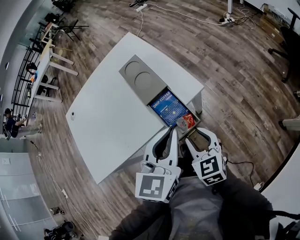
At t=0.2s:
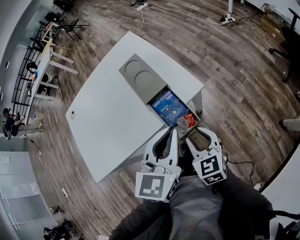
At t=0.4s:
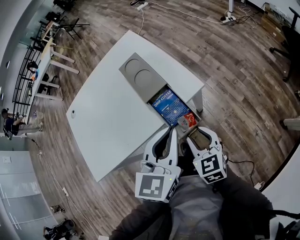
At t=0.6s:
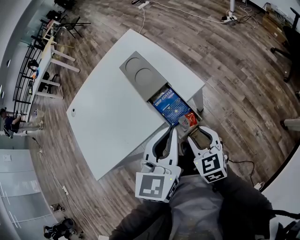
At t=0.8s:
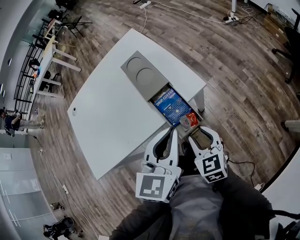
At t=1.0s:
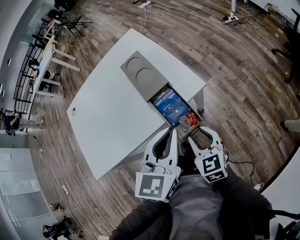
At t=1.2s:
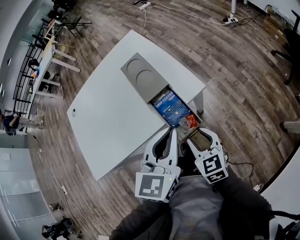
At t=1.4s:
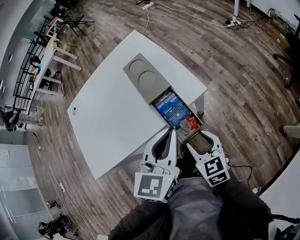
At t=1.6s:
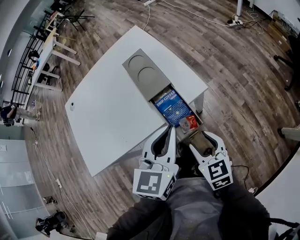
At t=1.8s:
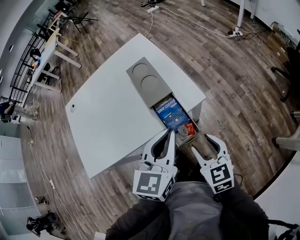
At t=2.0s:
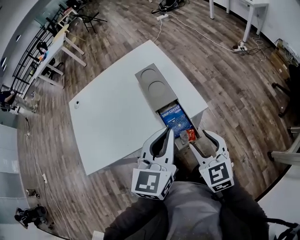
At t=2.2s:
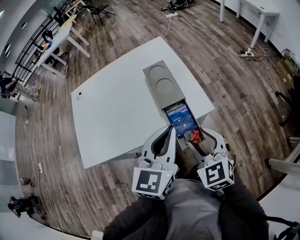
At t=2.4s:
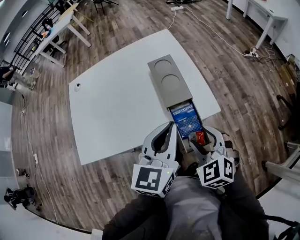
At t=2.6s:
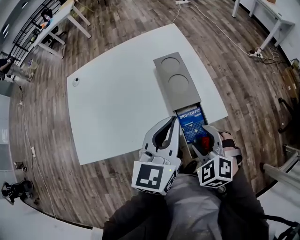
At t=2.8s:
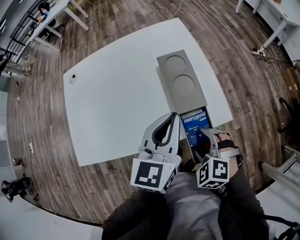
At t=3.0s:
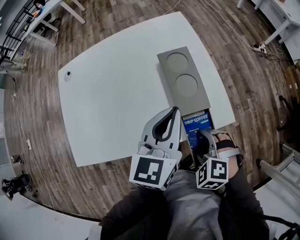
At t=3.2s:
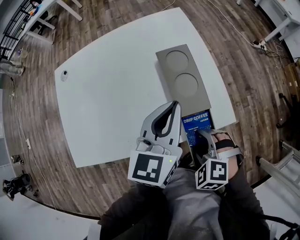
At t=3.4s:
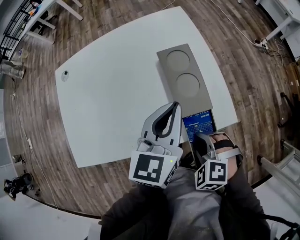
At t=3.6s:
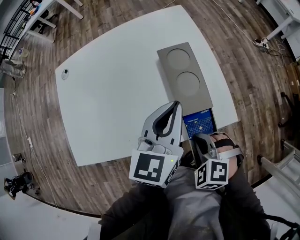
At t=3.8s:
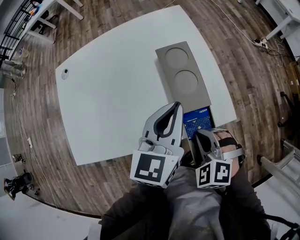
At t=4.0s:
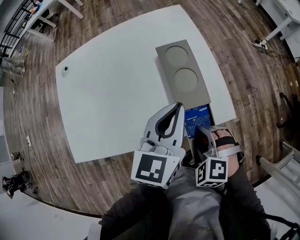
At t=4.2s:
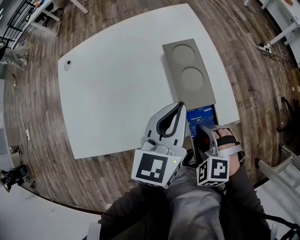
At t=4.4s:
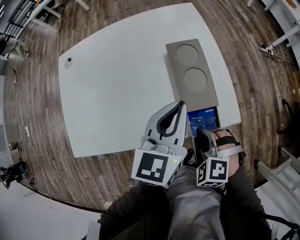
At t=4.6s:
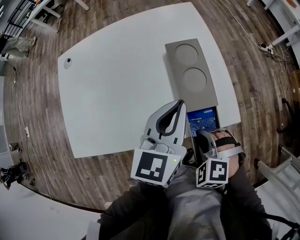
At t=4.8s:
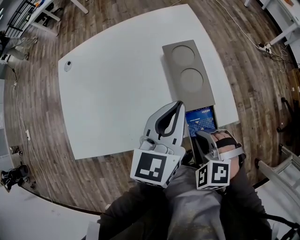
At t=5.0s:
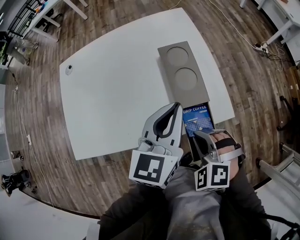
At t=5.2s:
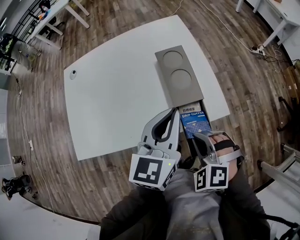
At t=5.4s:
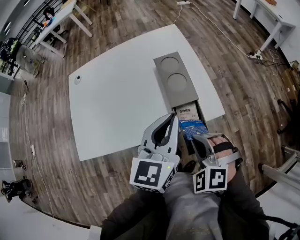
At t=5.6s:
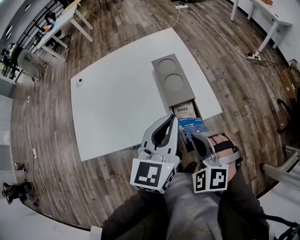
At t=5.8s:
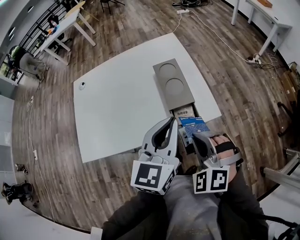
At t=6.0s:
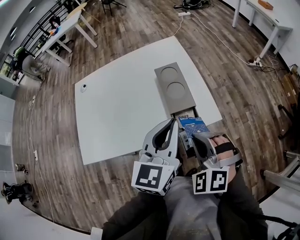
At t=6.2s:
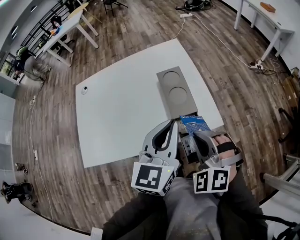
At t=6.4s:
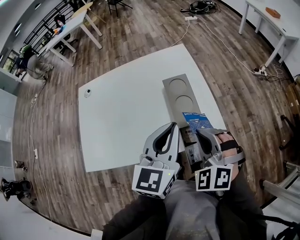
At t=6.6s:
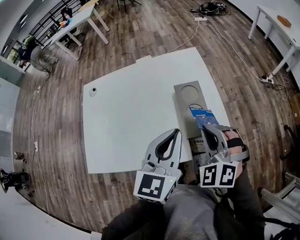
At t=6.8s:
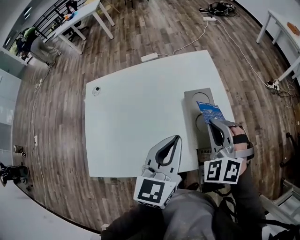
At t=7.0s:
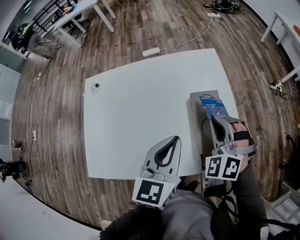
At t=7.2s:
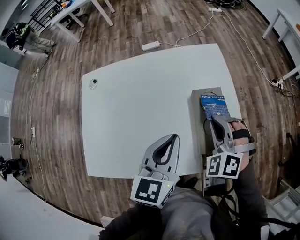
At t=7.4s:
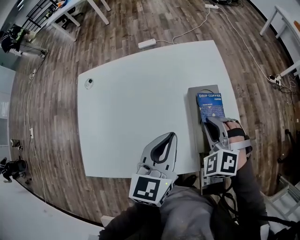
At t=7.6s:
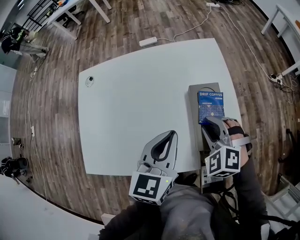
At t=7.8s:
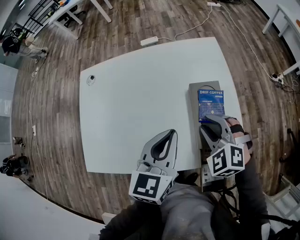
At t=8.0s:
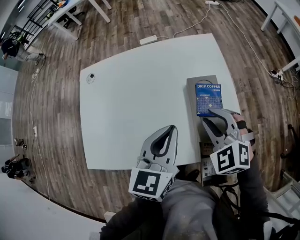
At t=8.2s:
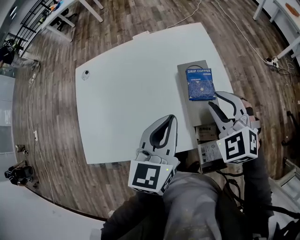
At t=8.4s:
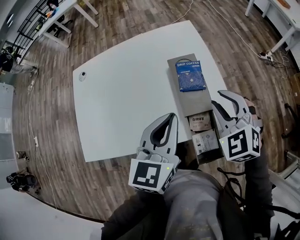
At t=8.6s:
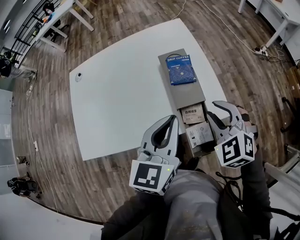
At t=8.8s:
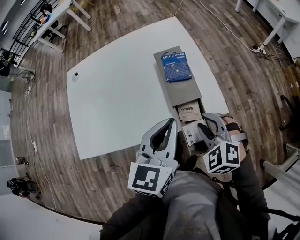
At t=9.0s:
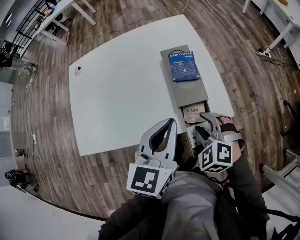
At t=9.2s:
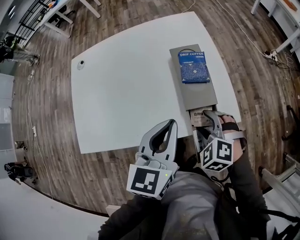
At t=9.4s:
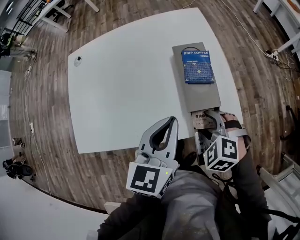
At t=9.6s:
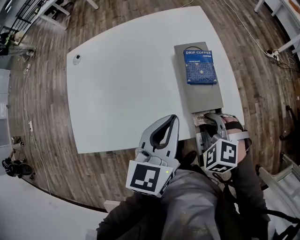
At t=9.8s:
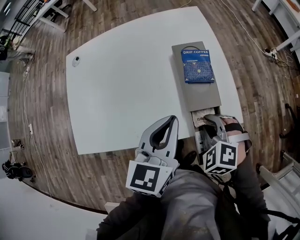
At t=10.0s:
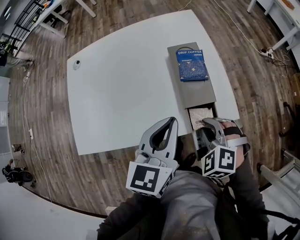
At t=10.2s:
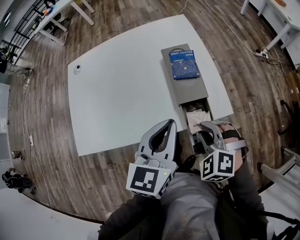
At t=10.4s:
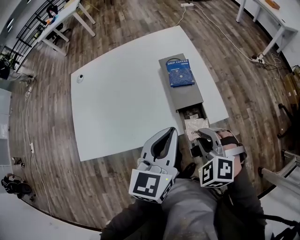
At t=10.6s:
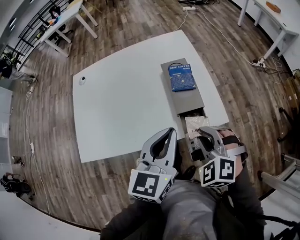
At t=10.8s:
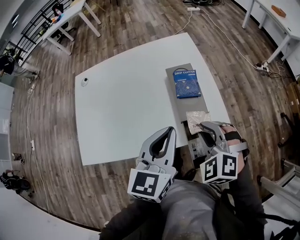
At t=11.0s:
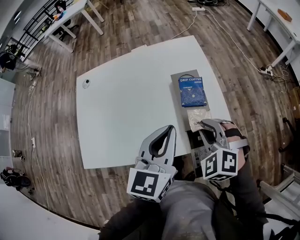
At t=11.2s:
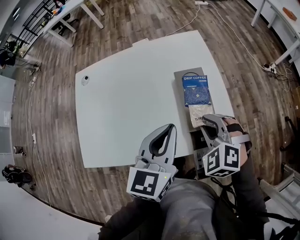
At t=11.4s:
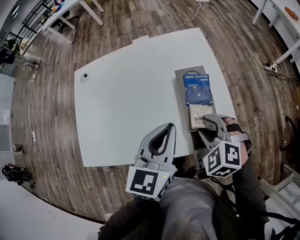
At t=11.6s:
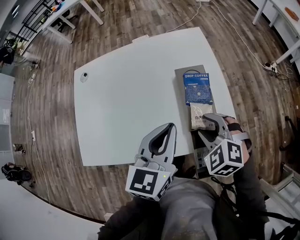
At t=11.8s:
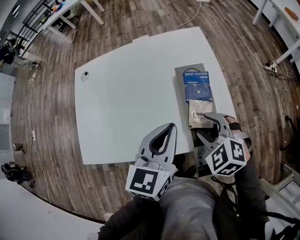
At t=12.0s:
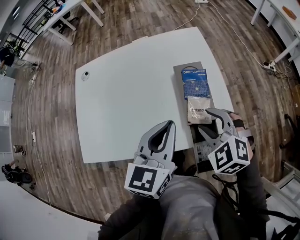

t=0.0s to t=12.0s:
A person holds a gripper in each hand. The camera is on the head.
t=0.0s to t=1.6s: There are only small adjustments of the grippers.
t=1.6s to t=3.0s: The right gripper shifts about 10 cm forward and to the left, goes upward and returns, roughly 10 cm each way, and twists approximately 60 degrees counterclockwise, seen from behind; the left gripper shifts about 15 cm forward and to the left.
t=3.0s to t=4.4s: The right gripper closes.
t=4.4s to t=6.0s: The right gripper travels upward by roughly 15 cm, rotates some 30 degrees, and closes. The left gripper heads backward and upward, covering about 10 cm.
t=6.0s to t=7.6s: The right gripper travels forward by about 20 cm, while the left gripper moves forward, to the left and downward, roughly 20 cm.
t=7.6s to t=9.0s: The left gripper shifts about 15 cm backward and to the right, while the right gripper moves backward, about 15 cm.
t=9.0s to t=10.4s: The right gripper ends up approximately 5 cm from where it was, and closes up.
t=10.4s to t=12.0s: The two grippers go about 10 cm forward. The right gripper opens its fingers.

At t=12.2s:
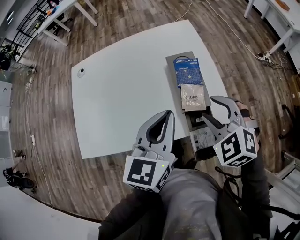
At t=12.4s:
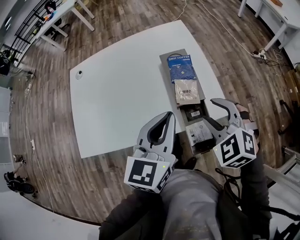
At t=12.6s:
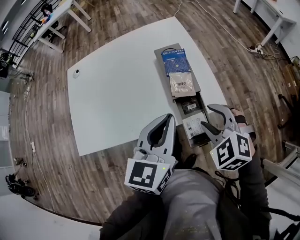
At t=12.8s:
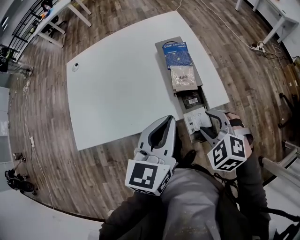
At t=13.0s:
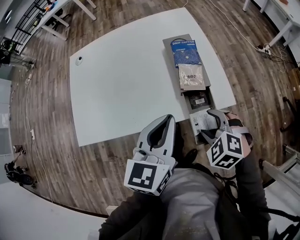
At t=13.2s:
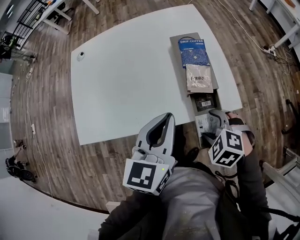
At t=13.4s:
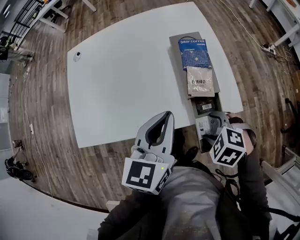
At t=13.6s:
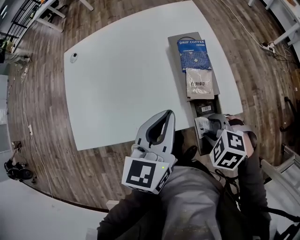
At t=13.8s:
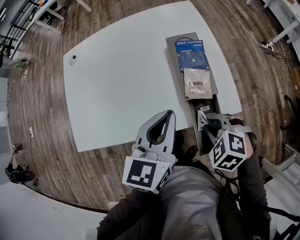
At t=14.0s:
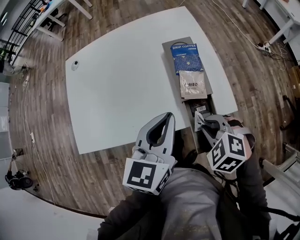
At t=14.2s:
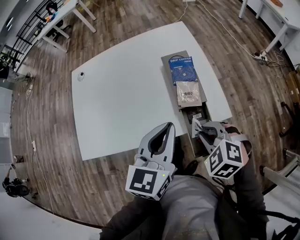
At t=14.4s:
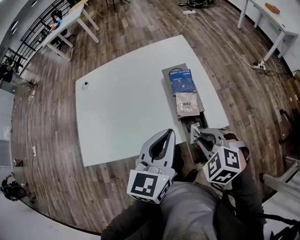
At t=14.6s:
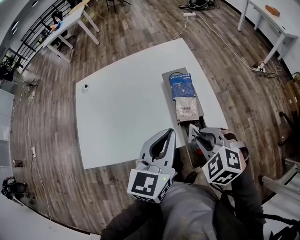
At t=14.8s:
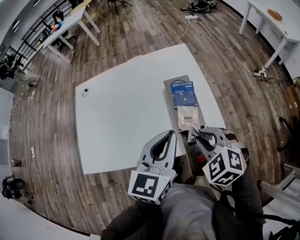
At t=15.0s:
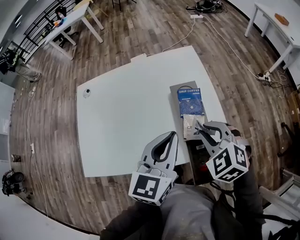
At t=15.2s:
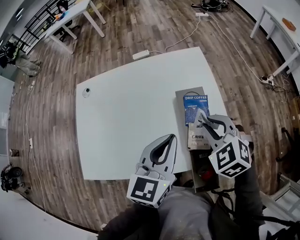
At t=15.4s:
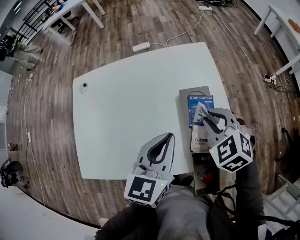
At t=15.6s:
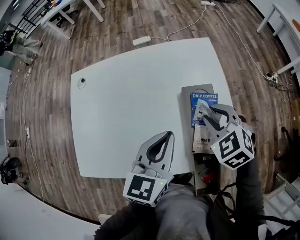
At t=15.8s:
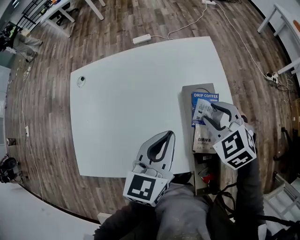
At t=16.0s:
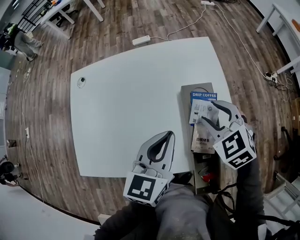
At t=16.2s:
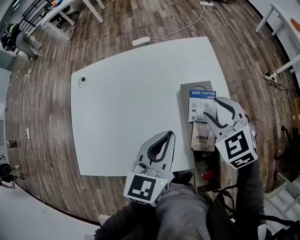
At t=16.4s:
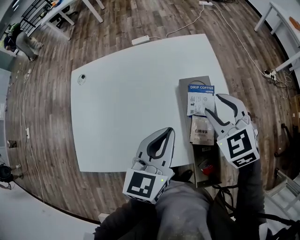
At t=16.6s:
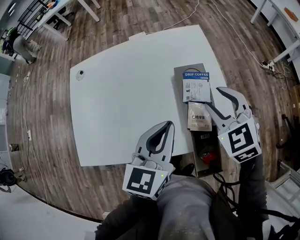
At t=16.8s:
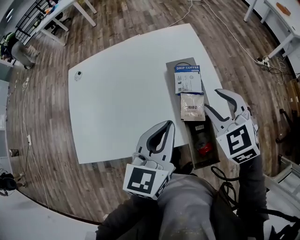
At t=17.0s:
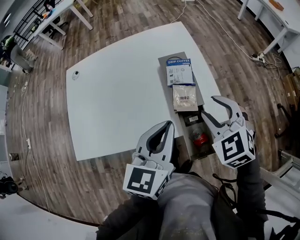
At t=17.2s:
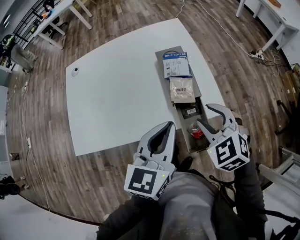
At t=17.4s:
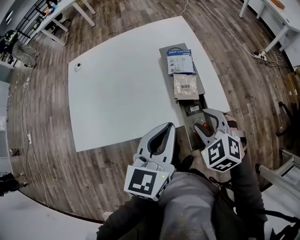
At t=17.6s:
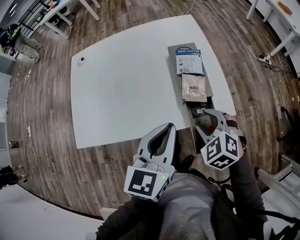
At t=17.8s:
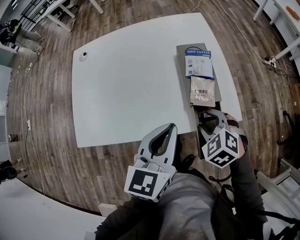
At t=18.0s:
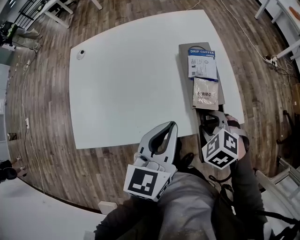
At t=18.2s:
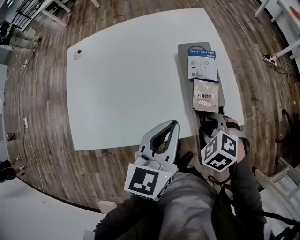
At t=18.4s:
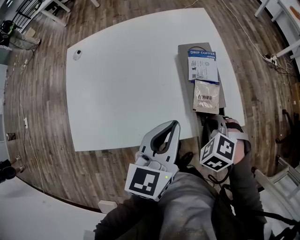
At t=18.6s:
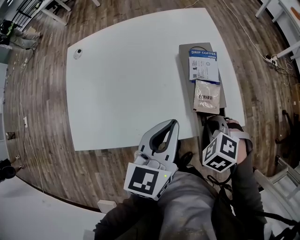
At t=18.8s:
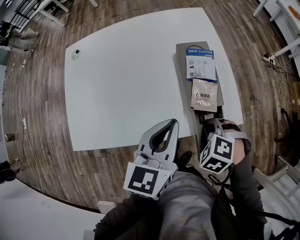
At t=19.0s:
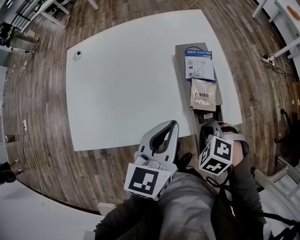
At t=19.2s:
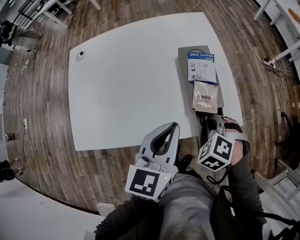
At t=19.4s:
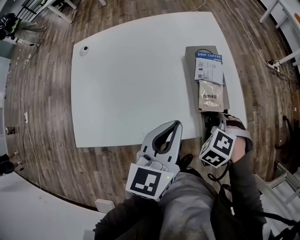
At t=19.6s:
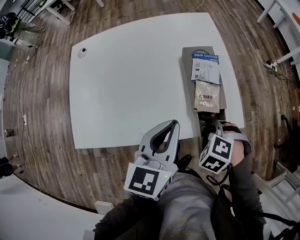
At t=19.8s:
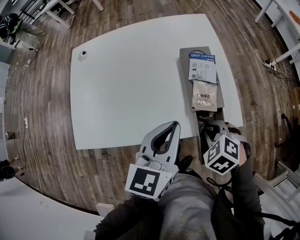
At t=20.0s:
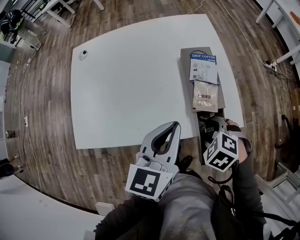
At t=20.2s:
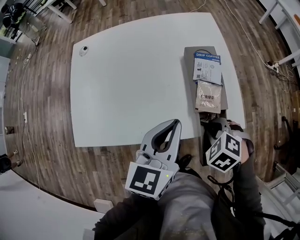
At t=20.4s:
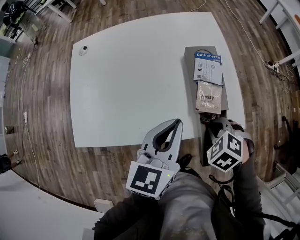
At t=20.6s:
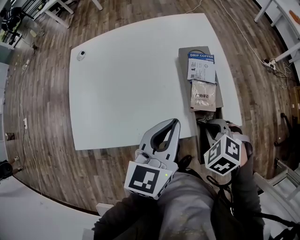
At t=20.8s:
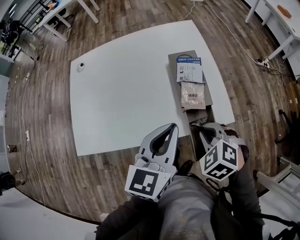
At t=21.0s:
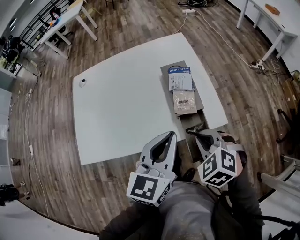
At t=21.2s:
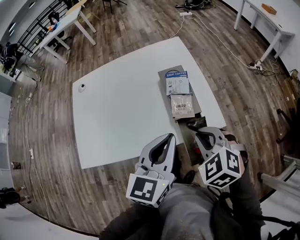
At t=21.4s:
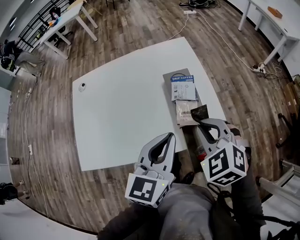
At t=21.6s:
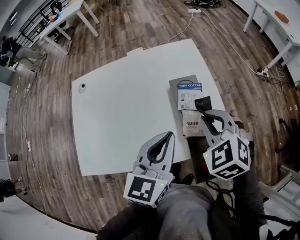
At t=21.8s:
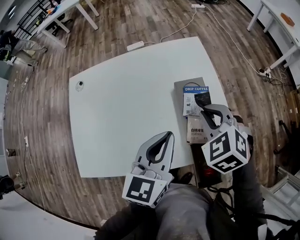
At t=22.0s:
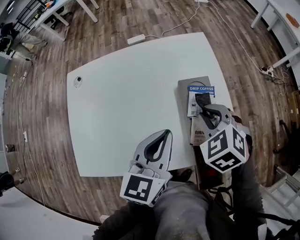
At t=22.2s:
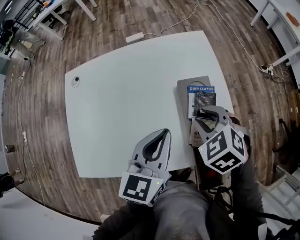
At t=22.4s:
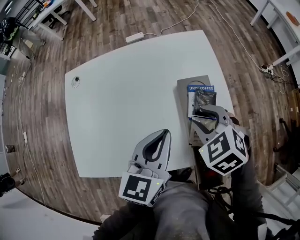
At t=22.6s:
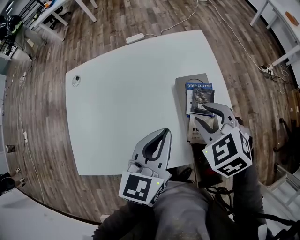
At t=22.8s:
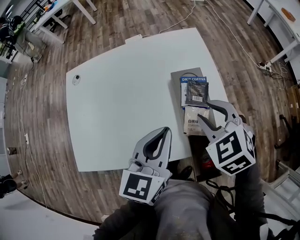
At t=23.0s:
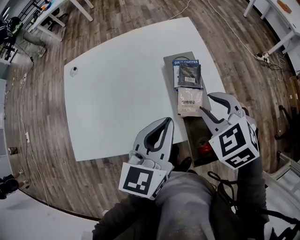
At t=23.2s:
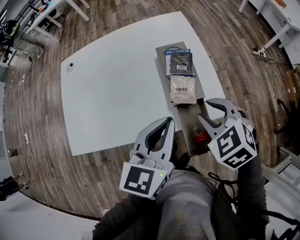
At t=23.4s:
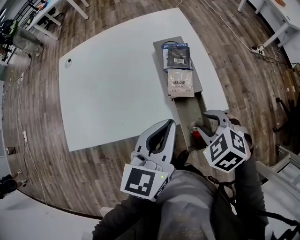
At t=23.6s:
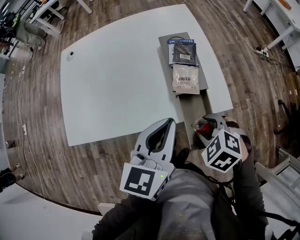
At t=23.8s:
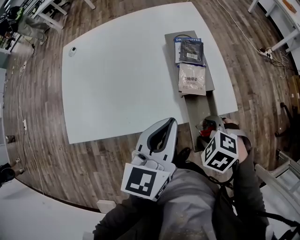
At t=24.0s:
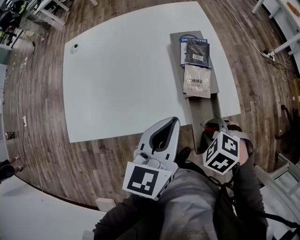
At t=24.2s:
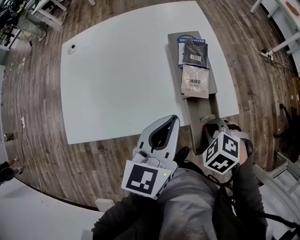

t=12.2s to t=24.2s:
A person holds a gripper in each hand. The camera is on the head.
t=12.2s to t=13.8s: The right gripper goes about 15 cm downward and backward, changes its angle by roughly 30 degrees, and closes up. The left gripper shifts approximately 5 cm downward, and moves about 10 cm backward and comes back.
t=13.8s to t=15.2s: The left gripper goes roughly 10 cm forward. Meanwhile the right gripper heads forward and upward, covering some 20 cm, and changes its angle by roughly 20 degrees.
t=15.2s to t=16.6s: The right gripper opens up.
t=16.6s to t=18.2s: The right gripper moves downward and backward, some 20 cm, and angles its fingers downward, by about 30 degrees; the left gripper heads backward, covering approximately 5 cm.
t=18.2s to t=19.8s: The right gripper closes up.
t=19.8s to t=21.2s: The right gripper travels upward by roughly 10 cm, changes its angle by approximately 20 degrees, and opens and closes again. The left gripper shifts by approximately 5 cm.
t=21.2s to t=22.6s: The right gripper moves forward, some 15 cm, and opens its fingers, while the left gripper shifts roughly 15 cm forward and to the left.
t=22.6s to t=24.2s: The right gripper ends up some 25 cm from where it was, turns by approximately 30 degrees, and closes up. Meanwhile the left gripper ends up approximately 10 cm from where it was.
